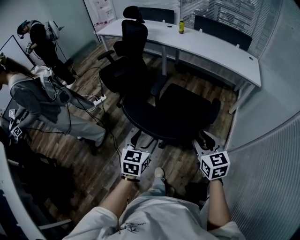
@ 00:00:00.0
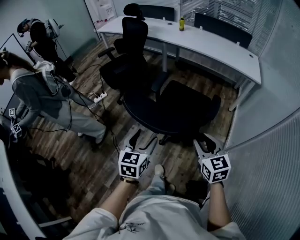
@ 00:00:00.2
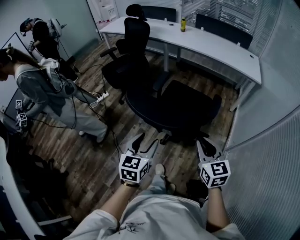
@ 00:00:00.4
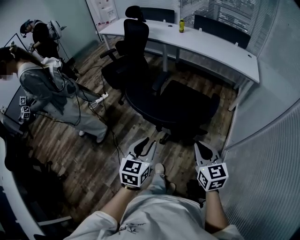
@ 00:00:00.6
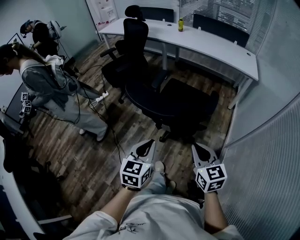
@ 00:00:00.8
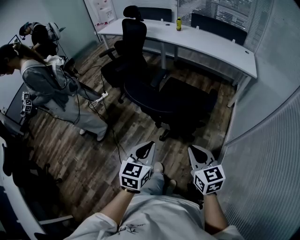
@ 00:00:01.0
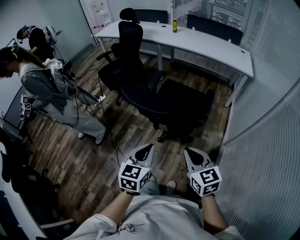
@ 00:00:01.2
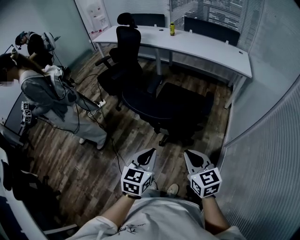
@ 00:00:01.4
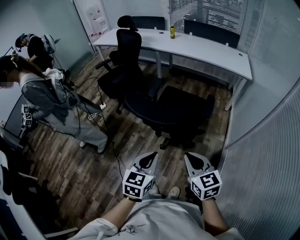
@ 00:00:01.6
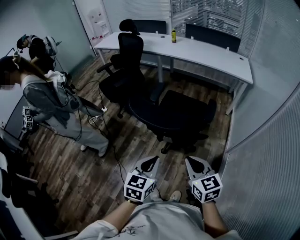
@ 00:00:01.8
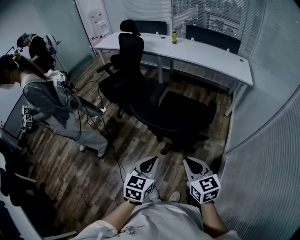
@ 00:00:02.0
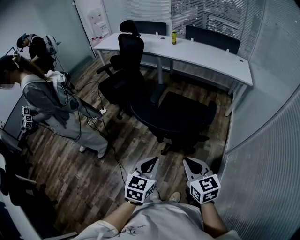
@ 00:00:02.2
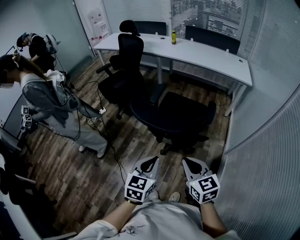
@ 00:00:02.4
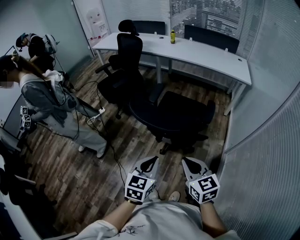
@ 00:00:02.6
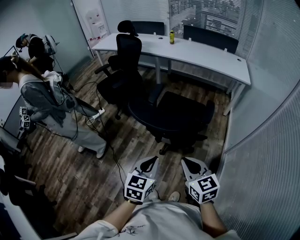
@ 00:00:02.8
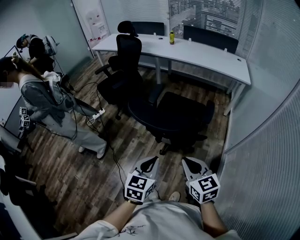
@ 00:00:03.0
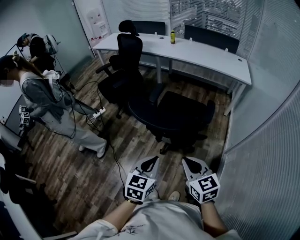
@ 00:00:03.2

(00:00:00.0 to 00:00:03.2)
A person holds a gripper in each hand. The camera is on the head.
00:00:00.0 - 00:00:01.6: Both grippers move backward, roughly 15 cm. The right gripper closes its fingers. The left gripper closes up.
00:00:01.6 - 00:00:03.2: The grippers move only a little.

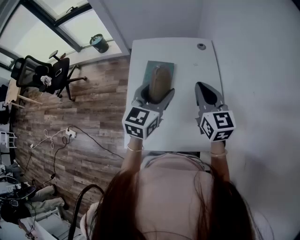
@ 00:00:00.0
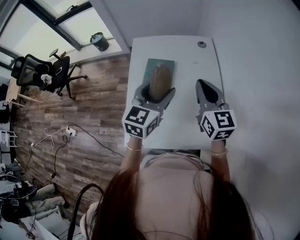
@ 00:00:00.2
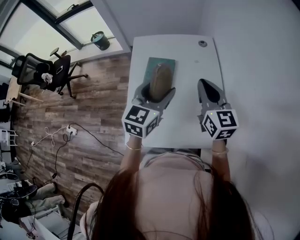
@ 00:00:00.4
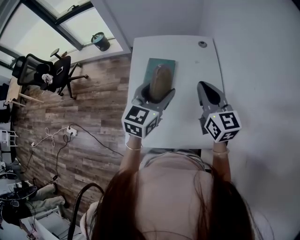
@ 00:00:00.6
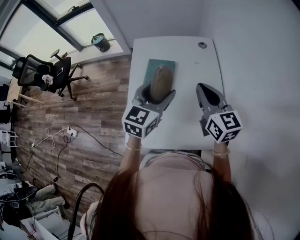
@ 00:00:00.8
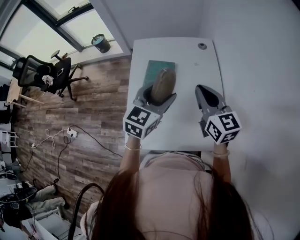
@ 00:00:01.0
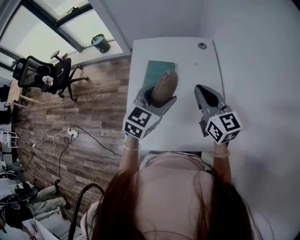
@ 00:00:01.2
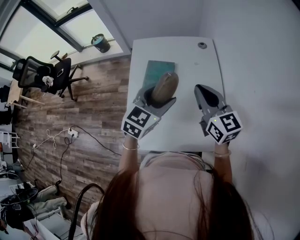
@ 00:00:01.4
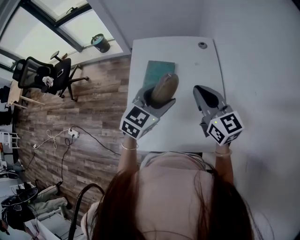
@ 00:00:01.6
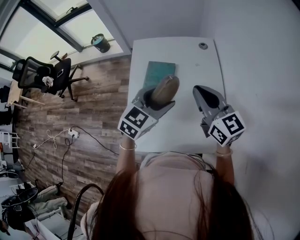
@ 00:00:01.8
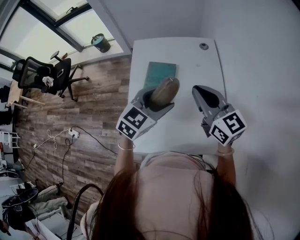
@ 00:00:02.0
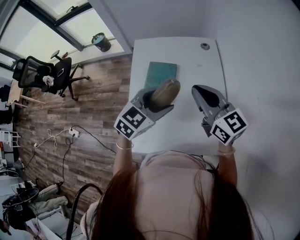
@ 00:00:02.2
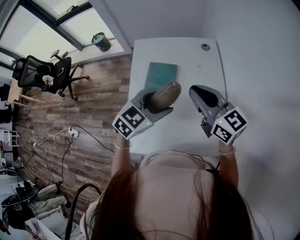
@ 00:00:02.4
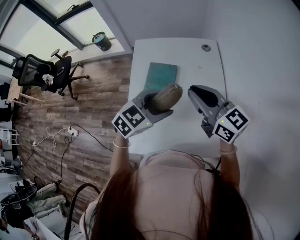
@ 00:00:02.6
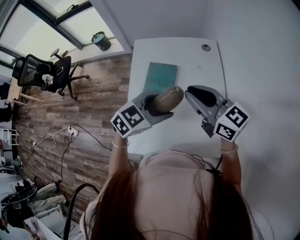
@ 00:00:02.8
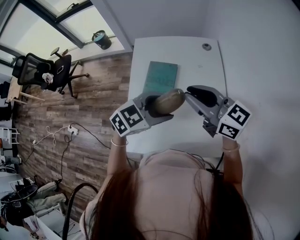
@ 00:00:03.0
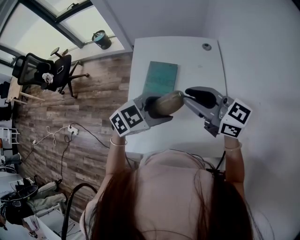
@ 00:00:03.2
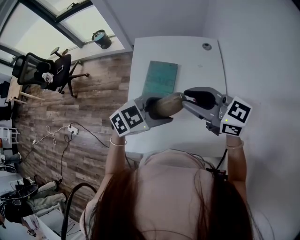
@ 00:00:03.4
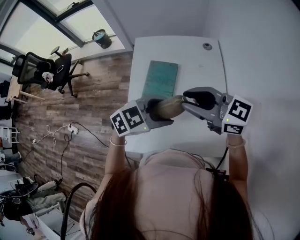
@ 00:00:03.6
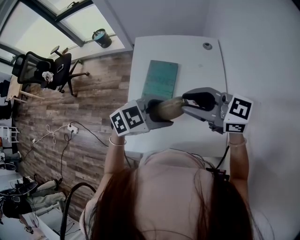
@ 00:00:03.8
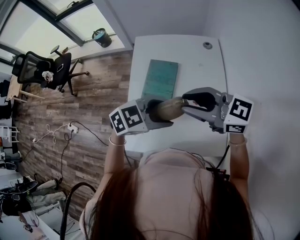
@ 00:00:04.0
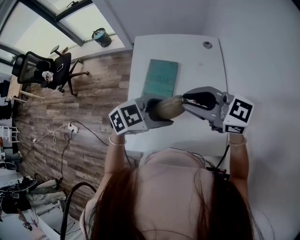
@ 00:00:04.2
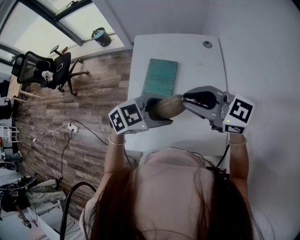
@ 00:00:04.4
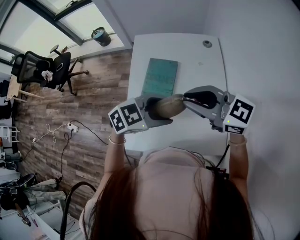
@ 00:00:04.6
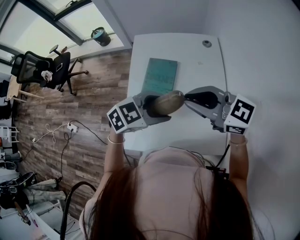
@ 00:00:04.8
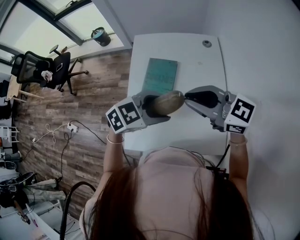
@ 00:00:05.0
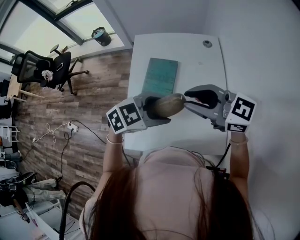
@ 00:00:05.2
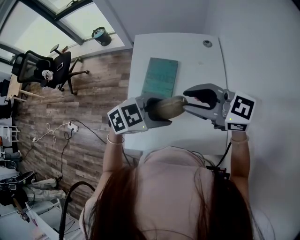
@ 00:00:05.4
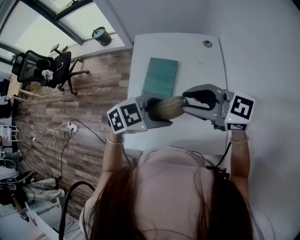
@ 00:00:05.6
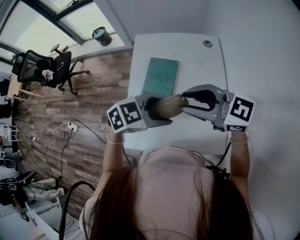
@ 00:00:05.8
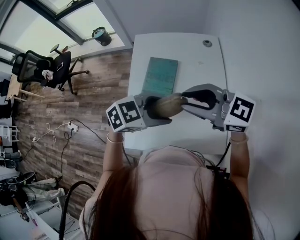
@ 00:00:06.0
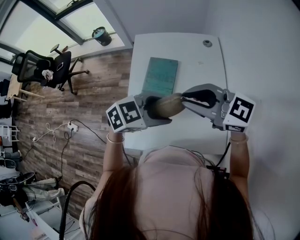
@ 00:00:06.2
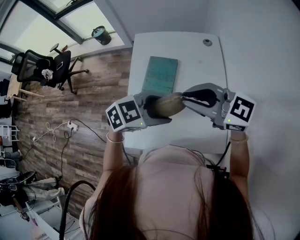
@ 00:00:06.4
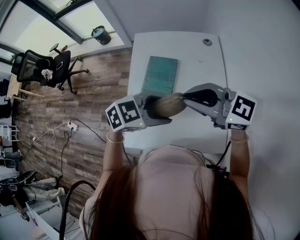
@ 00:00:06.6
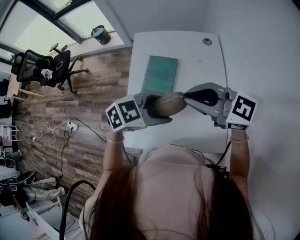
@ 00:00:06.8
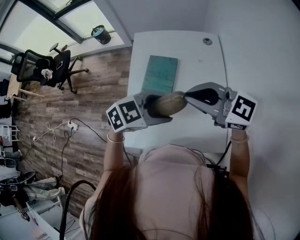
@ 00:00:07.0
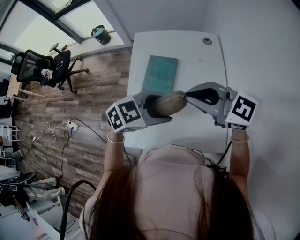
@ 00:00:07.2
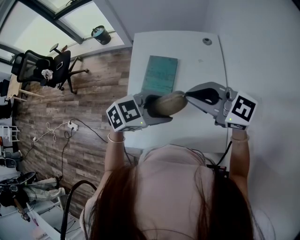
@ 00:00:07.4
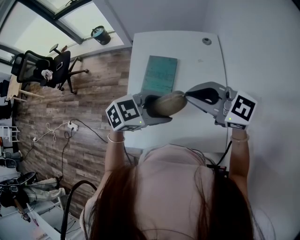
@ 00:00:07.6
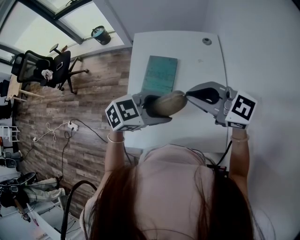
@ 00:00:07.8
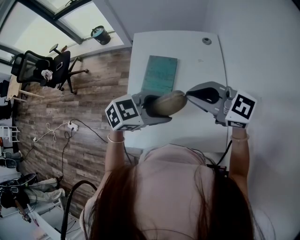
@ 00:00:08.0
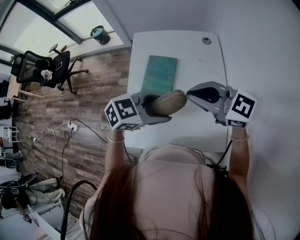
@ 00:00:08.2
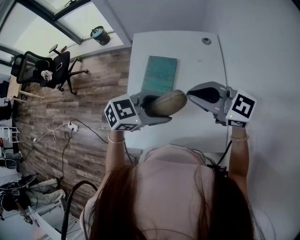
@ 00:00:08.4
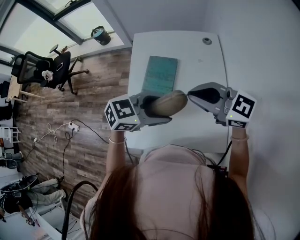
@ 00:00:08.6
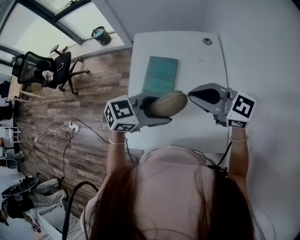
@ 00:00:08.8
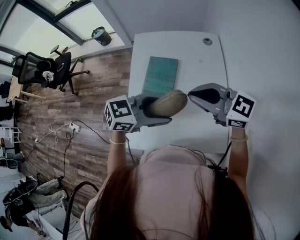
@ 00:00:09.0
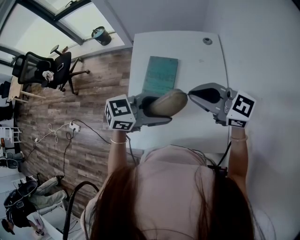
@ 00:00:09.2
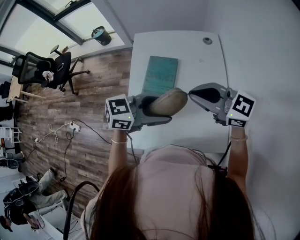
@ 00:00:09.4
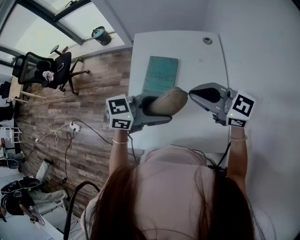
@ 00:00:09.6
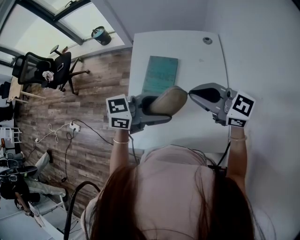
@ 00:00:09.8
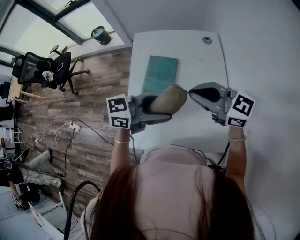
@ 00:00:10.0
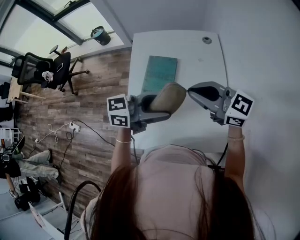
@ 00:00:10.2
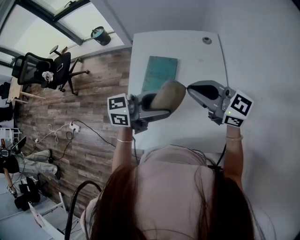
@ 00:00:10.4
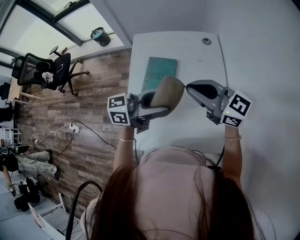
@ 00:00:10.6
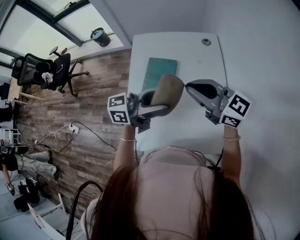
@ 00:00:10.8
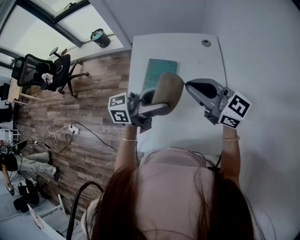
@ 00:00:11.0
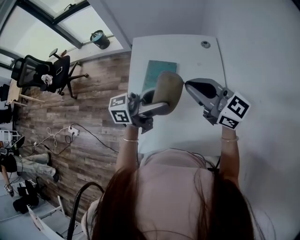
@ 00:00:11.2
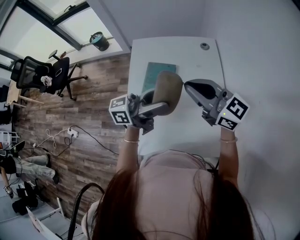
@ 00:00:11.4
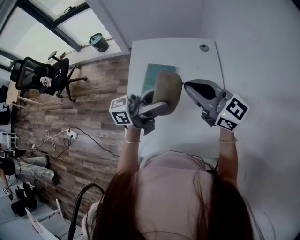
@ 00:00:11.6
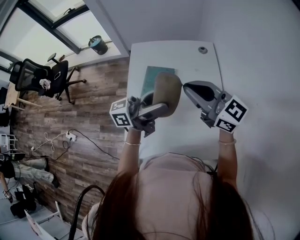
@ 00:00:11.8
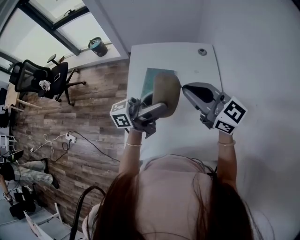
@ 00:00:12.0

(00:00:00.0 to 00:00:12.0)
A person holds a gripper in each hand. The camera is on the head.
00:00:00.0 - 00:00:01.6: The grippers make only small movements.
00:00:01.6 - 00:00:03.0: The right gripper rotates some 20 degrees. The left gripper swivels some 20 degrees.
00:00:04.4 - 00:00:06.0: The grippers move only a little.
00:00:06.0 - 00:00:07.6: The right gripper closes its fingers.
00:00:07.6 - 00:00:09.0: The grippers stay close to where they were, moving slightly.
00:00:09.0 - 00:00:10.4: The left gripper changes its angle by some 30 degrees.
00:00:10.4 - 00:00:12.0: The left gripper moves roughly 5 cm, and swivels roughly 20 degrees.

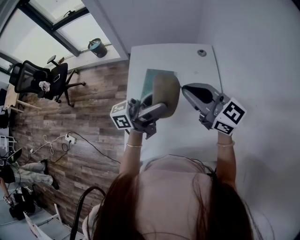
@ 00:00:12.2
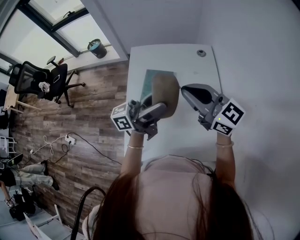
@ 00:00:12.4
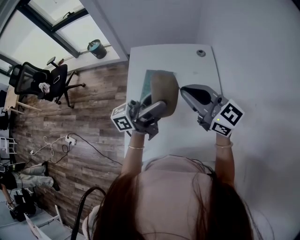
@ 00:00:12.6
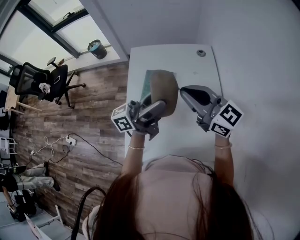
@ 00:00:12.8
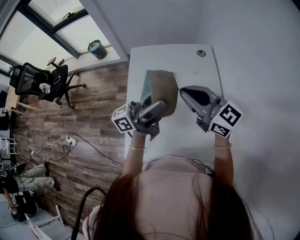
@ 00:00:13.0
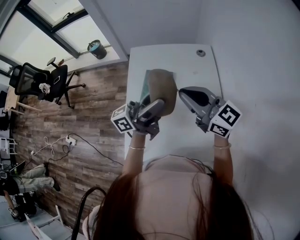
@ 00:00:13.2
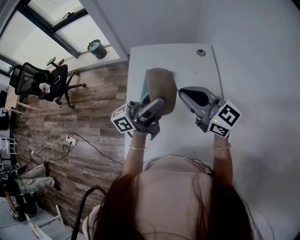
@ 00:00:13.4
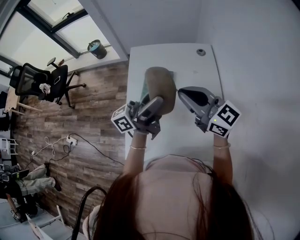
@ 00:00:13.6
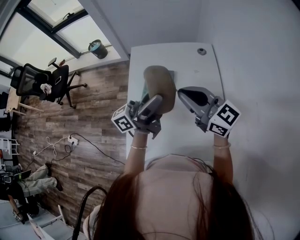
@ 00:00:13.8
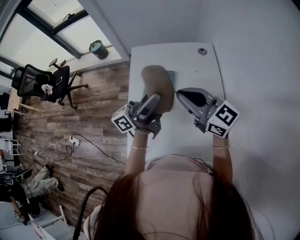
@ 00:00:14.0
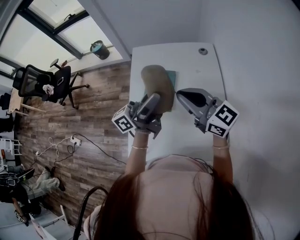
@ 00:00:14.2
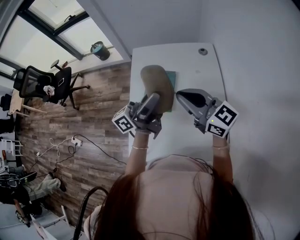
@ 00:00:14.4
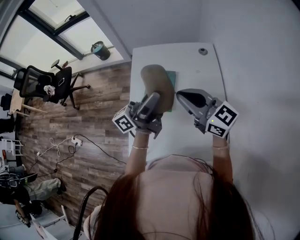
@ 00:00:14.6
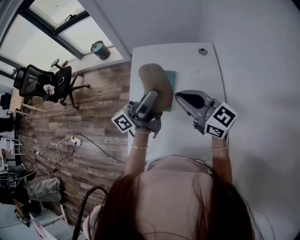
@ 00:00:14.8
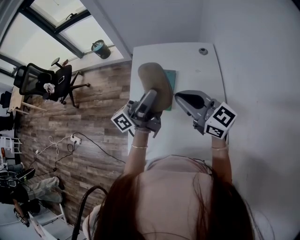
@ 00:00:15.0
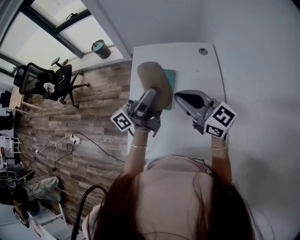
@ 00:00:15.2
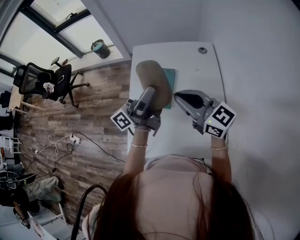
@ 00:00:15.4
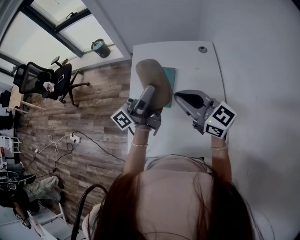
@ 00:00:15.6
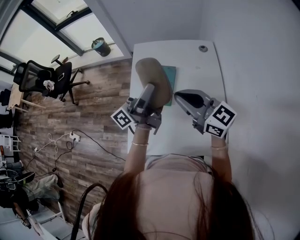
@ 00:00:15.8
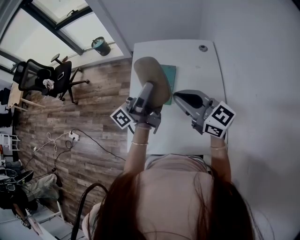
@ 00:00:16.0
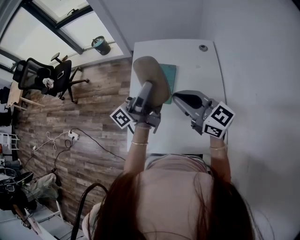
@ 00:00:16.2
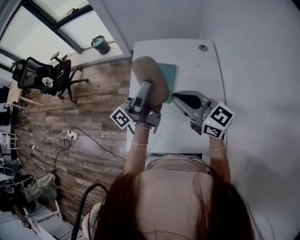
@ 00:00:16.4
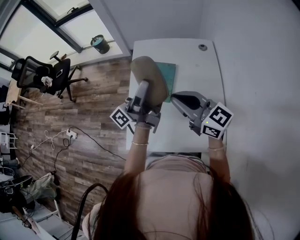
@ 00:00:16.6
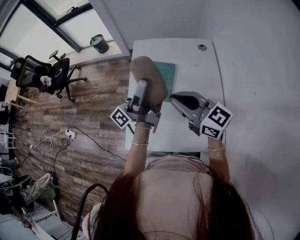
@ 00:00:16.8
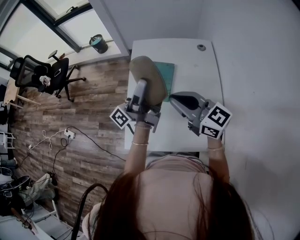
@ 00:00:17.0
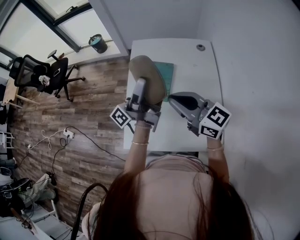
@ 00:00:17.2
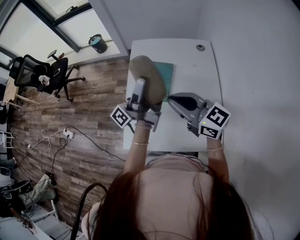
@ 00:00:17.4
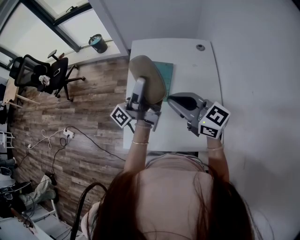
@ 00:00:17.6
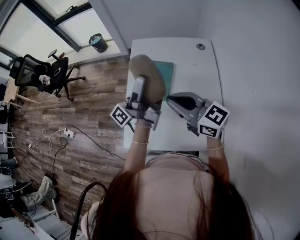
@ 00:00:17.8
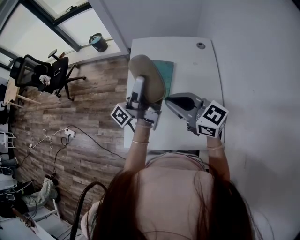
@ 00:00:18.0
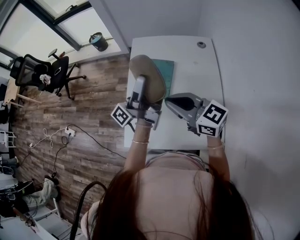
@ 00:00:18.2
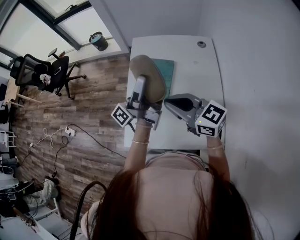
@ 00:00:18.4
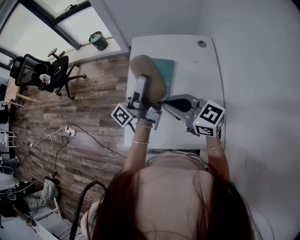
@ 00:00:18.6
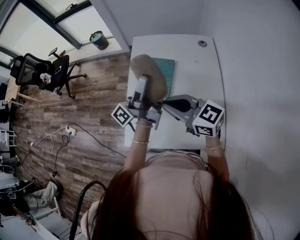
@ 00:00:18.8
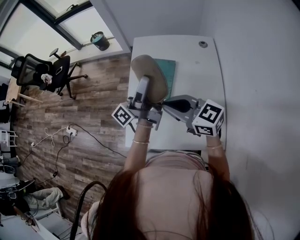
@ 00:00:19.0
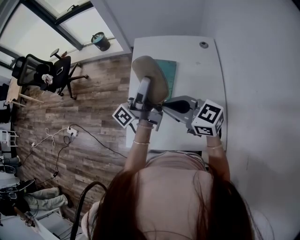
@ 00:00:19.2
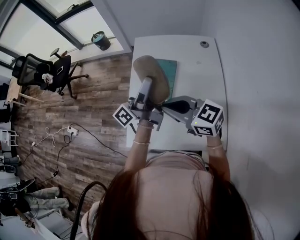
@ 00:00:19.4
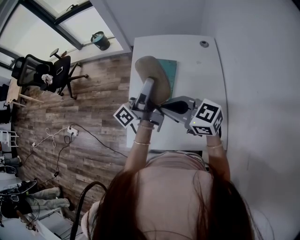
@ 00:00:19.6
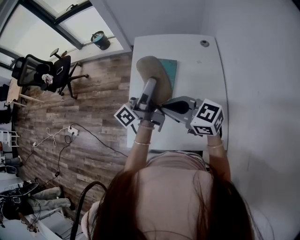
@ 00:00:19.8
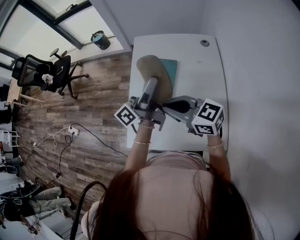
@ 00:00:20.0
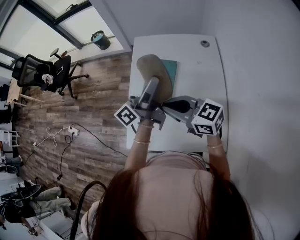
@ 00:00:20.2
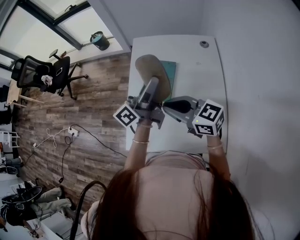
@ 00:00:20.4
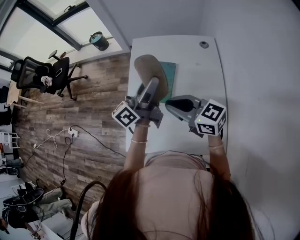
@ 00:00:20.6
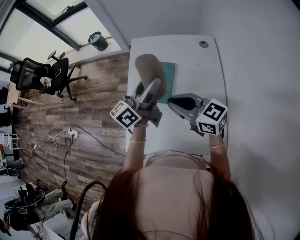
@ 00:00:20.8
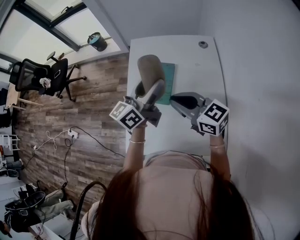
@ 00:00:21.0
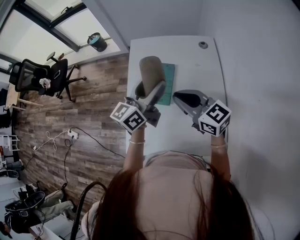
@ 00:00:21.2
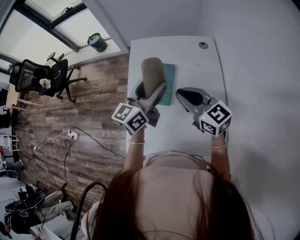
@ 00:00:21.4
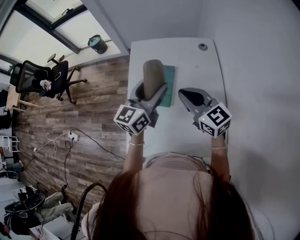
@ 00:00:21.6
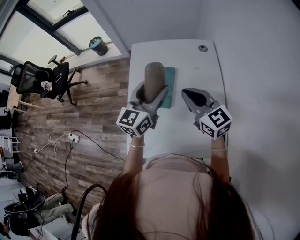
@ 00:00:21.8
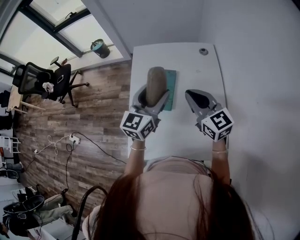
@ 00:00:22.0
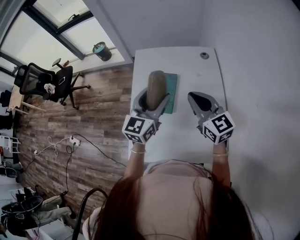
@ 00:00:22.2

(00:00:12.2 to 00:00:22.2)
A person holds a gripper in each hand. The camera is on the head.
00:00:12.2 - 00:00:13.6: There are only small adjustments of the grippers.
00:00:13.6 - 00:00:15.0: The grippers move only a little.
00:00:15.0 - 00:00:16.4: There are only small adjustments of the grippers.
00:00:16.4 - 00:00:18.0: There are only small adjustments of the grippers.
00:00:18.0 - 00:00:19.4: There are only small adjustments of the grippers.
00:00:19.4 - 00:00:20.8: The left gripper turns by some 40 degrees, while the right gripper heads to the right, covering roughly 5 cm.
00:00:20.8 - 00:00:22.2: The left gripper changes its angle by about 40 degrees, while the right gripper is displaced to the right by approximately 5 cm, and changes its angle by approximately 30 degrees.
